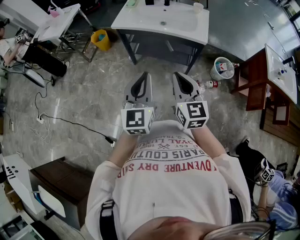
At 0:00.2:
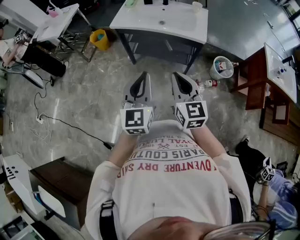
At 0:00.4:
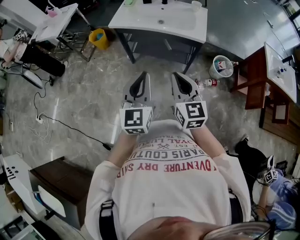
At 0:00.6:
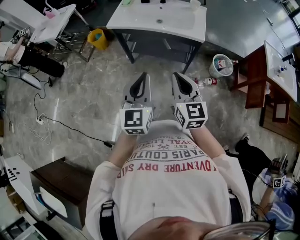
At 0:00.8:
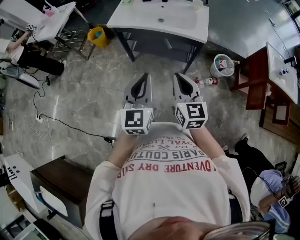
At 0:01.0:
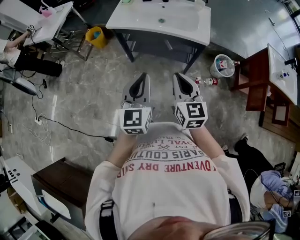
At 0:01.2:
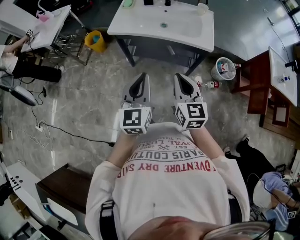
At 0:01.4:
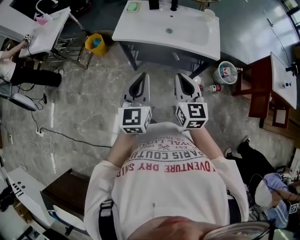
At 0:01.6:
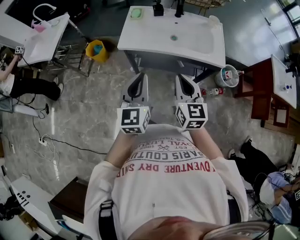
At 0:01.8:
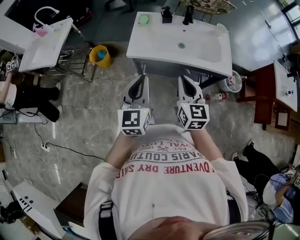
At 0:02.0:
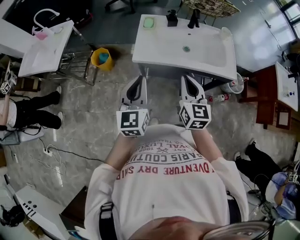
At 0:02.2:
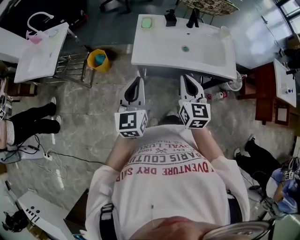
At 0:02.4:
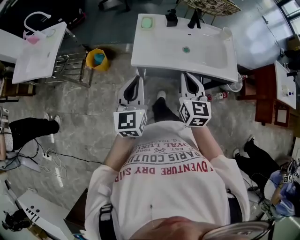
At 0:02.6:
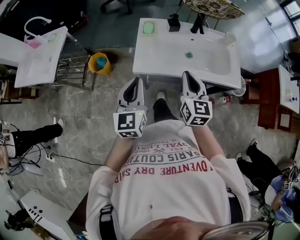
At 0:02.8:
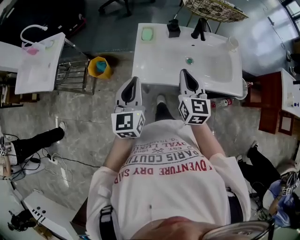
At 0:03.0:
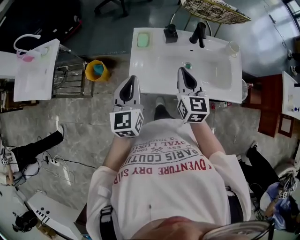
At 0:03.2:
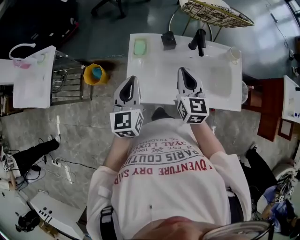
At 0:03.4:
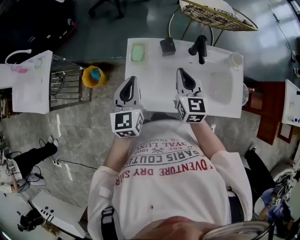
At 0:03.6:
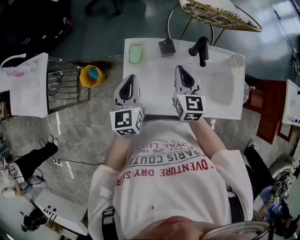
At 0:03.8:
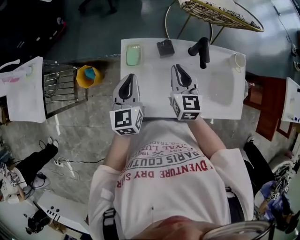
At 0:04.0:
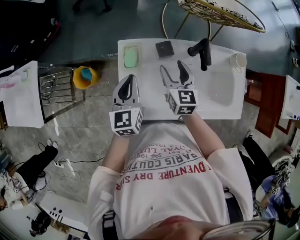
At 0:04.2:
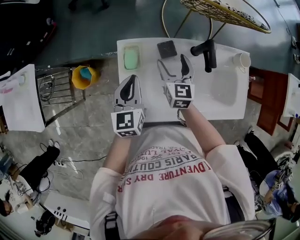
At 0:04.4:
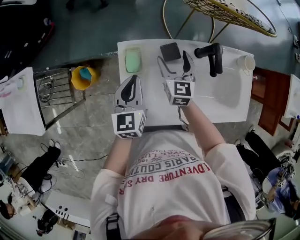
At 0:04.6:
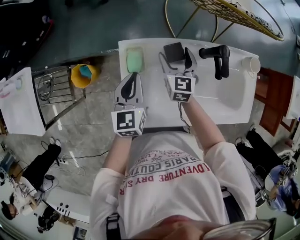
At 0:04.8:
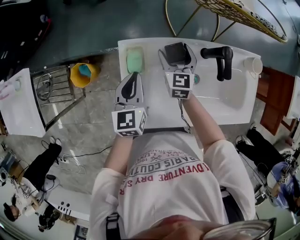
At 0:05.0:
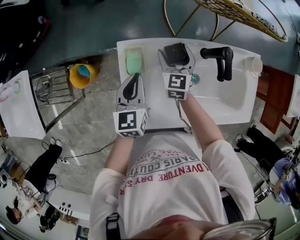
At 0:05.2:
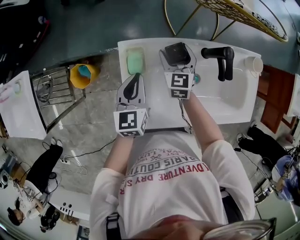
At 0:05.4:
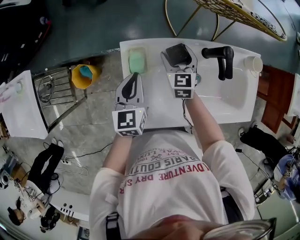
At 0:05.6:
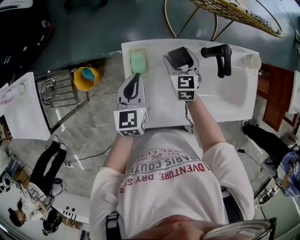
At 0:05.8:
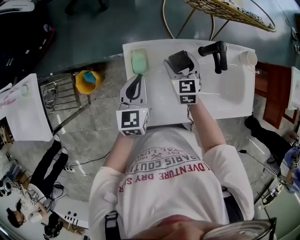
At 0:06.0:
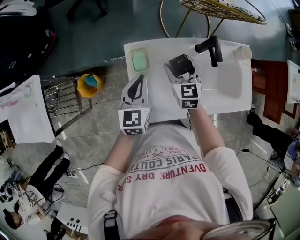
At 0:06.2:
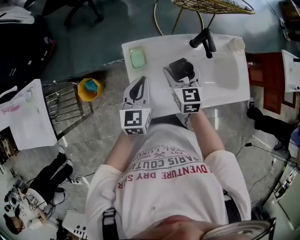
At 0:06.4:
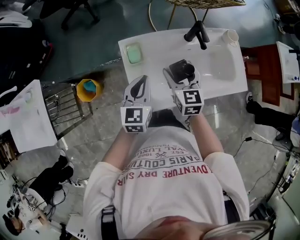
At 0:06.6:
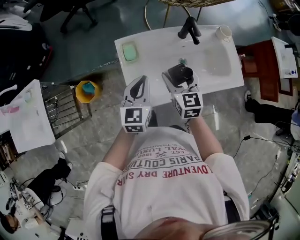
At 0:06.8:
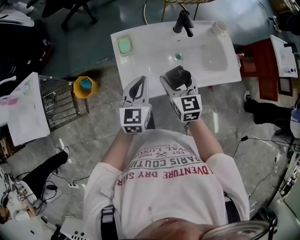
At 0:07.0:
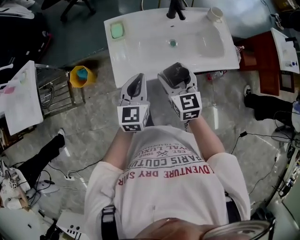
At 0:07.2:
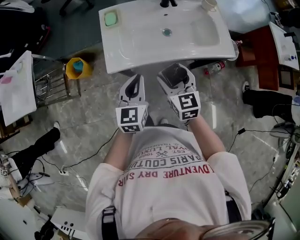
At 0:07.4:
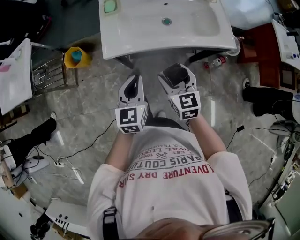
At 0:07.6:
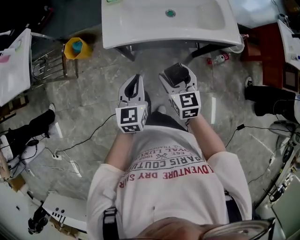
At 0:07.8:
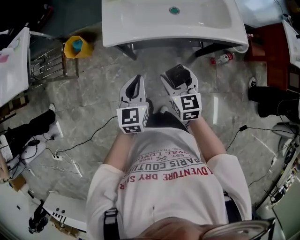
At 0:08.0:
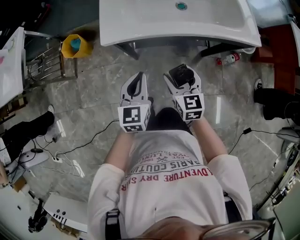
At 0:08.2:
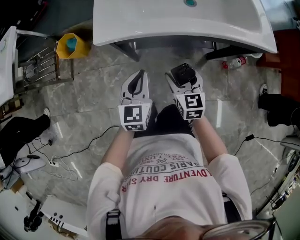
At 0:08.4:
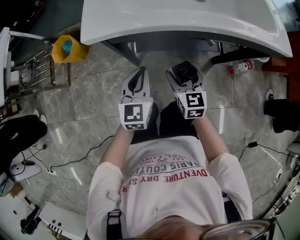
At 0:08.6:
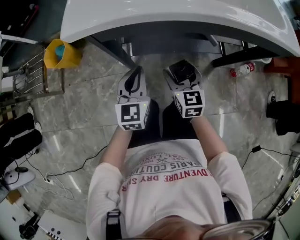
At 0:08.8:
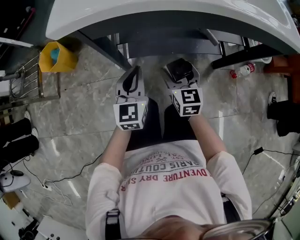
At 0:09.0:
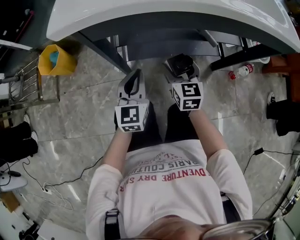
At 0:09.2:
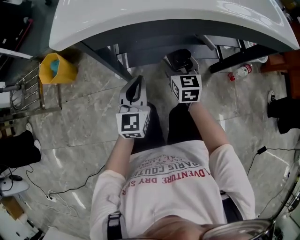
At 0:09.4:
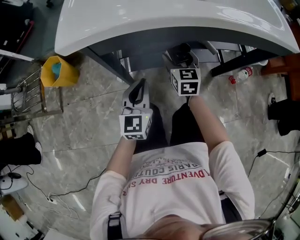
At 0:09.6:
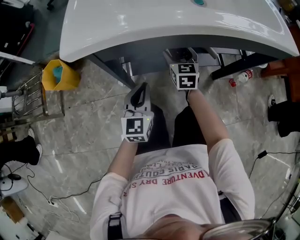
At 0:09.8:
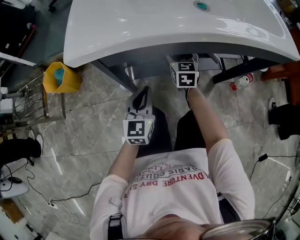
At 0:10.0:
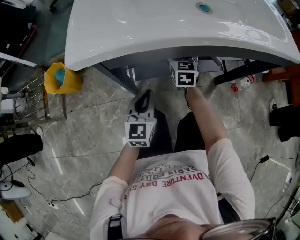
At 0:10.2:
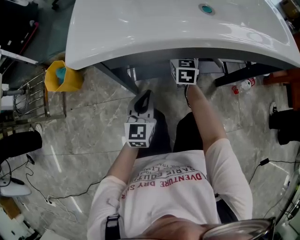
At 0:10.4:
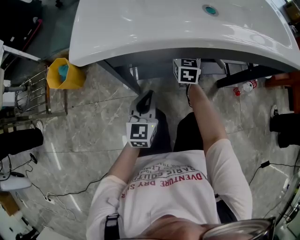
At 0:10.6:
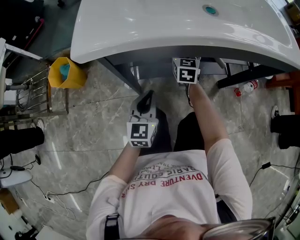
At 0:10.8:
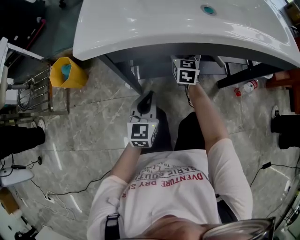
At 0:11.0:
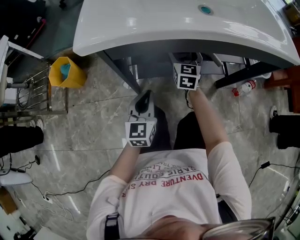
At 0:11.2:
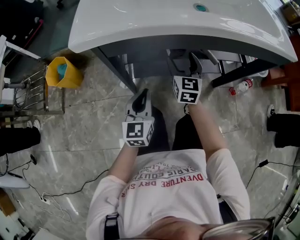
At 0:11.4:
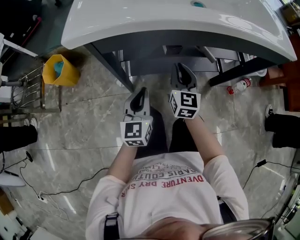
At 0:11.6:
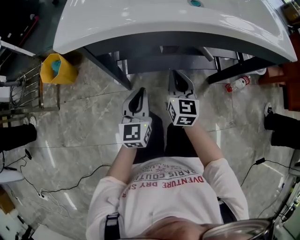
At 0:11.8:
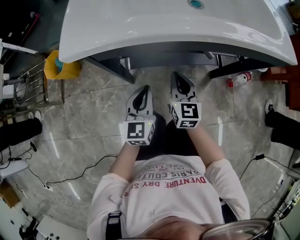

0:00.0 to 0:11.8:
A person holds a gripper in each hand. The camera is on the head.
0:00.0 to 0:01.4: The left gripper travels forward and to the left by roughly 20 cm. The right gripper shifts about 20 cm forward.
0:01.4 to 0:03.0: The left gripper is displaced forward and to the left by some 40 cm. Meanwhile the right gripper moves forward, roughly 40 cm.
0:03.0 to 0:04.4: The two grippers go roughly 25 cm forward and downward. The right gripper opens.
0:04.4 to 0:06.0: The right gripper ends up approximately 5 cm from where it was.
0:06.0 to 0:07.4: The two grippers go about 35 cm backward.
0:07.4 to 0:08.8: The grippers both shift downward by approximately 40 cm.
0:08.8 to 0:10.4: The right gripper moves forward, approximately 20 cm.
0:10.4 to 0:11.8: The left gripper goes about 5 cm upward, while the right gripper shifts approximately 20 cm backward, and closes.

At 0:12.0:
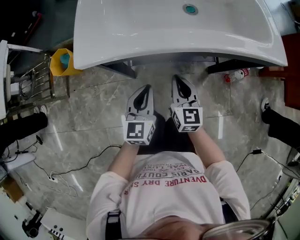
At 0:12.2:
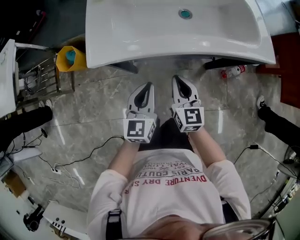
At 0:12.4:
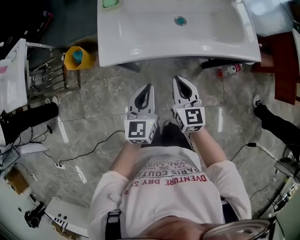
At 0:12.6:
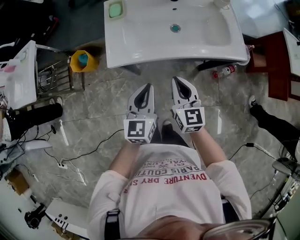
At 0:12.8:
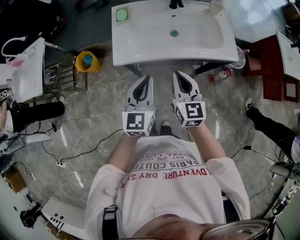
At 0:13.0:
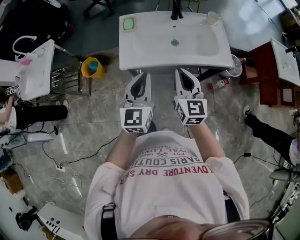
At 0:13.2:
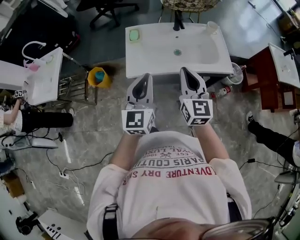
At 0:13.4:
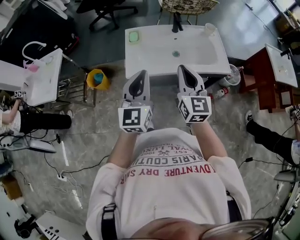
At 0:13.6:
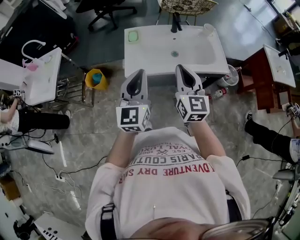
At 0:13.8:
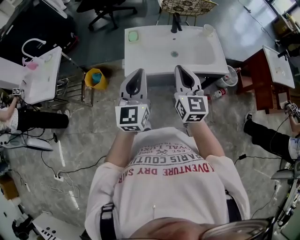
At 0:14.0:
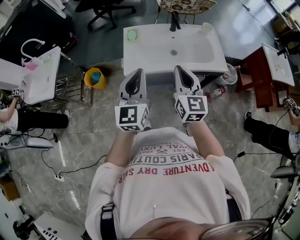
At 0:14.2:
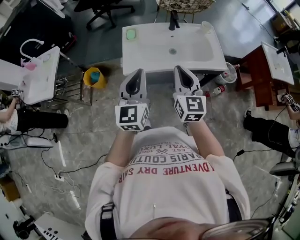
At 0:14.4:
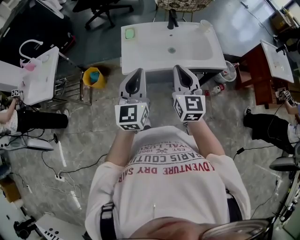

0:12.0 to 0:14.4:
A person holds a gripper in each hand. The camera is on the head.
0:12.0 to 0:13.2: Both grippers travel together upward, some 50 cm.
0:13.2 to 0:14.4: The grippers move only a little.

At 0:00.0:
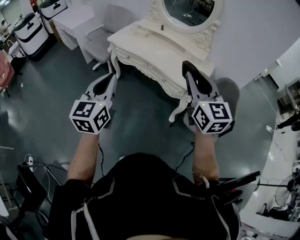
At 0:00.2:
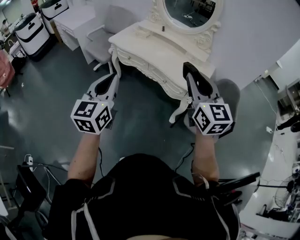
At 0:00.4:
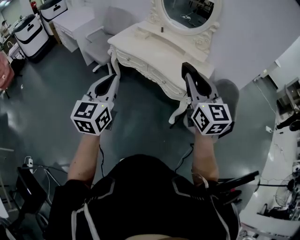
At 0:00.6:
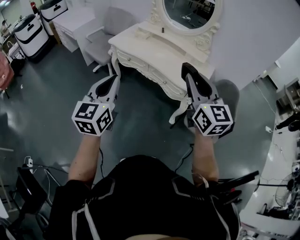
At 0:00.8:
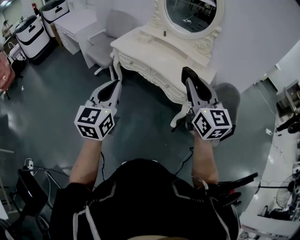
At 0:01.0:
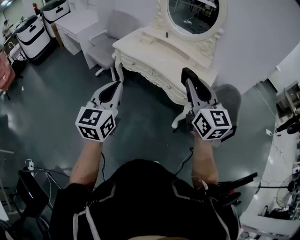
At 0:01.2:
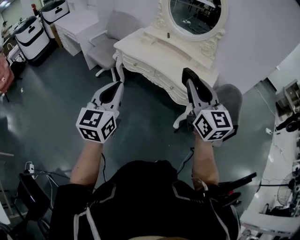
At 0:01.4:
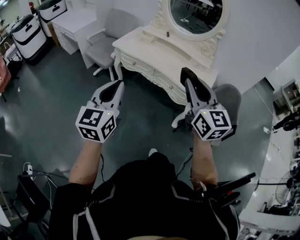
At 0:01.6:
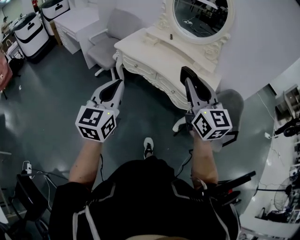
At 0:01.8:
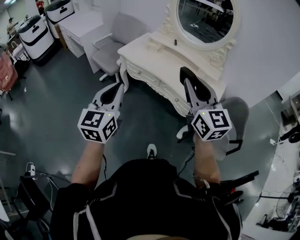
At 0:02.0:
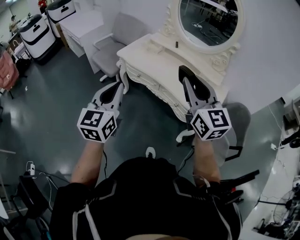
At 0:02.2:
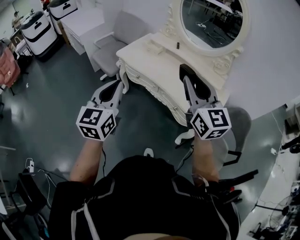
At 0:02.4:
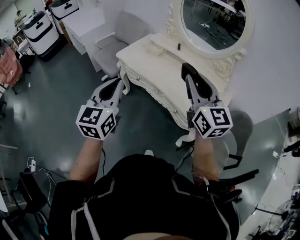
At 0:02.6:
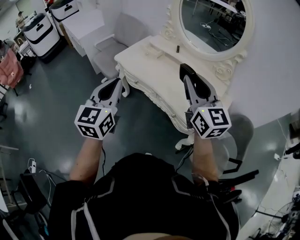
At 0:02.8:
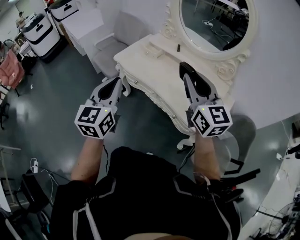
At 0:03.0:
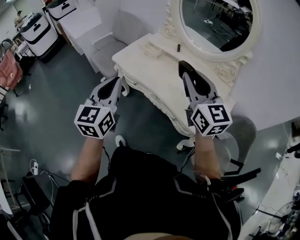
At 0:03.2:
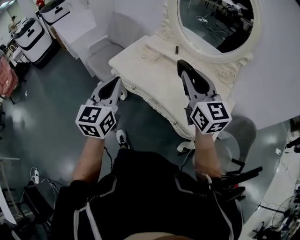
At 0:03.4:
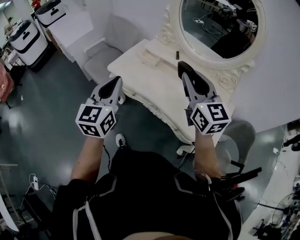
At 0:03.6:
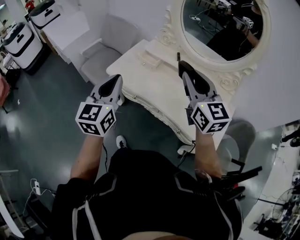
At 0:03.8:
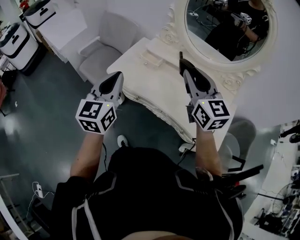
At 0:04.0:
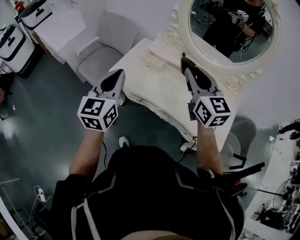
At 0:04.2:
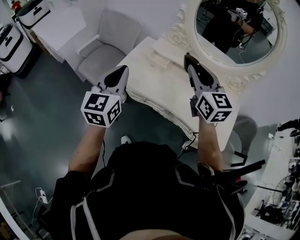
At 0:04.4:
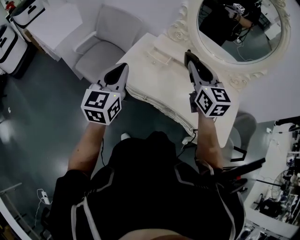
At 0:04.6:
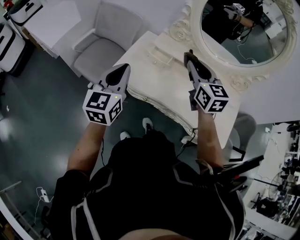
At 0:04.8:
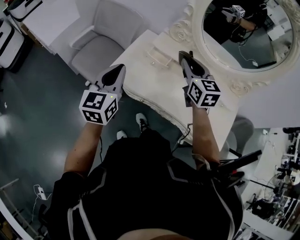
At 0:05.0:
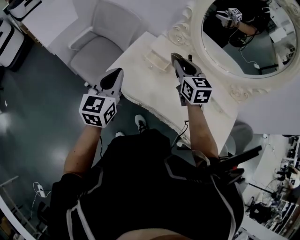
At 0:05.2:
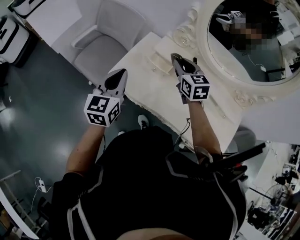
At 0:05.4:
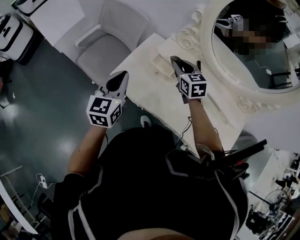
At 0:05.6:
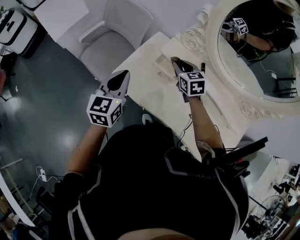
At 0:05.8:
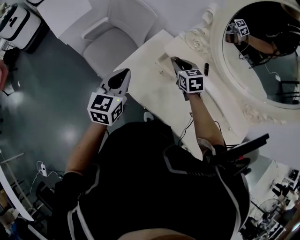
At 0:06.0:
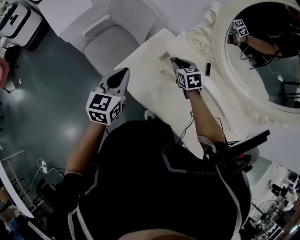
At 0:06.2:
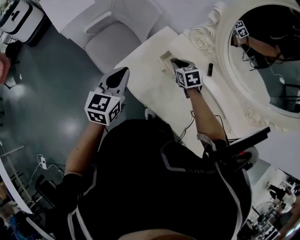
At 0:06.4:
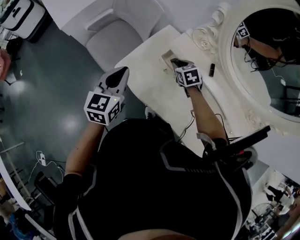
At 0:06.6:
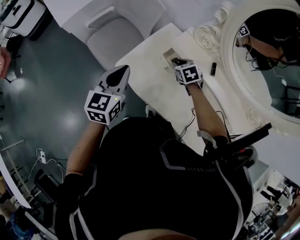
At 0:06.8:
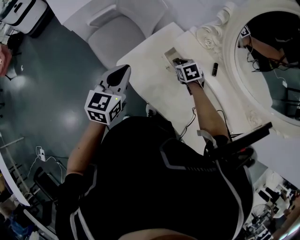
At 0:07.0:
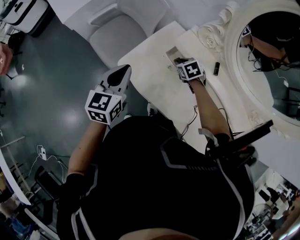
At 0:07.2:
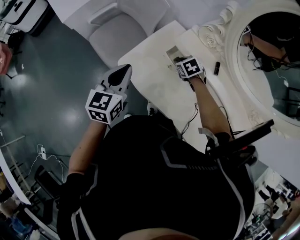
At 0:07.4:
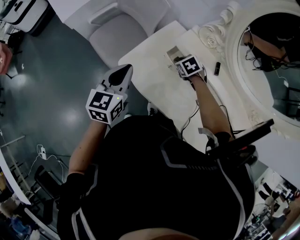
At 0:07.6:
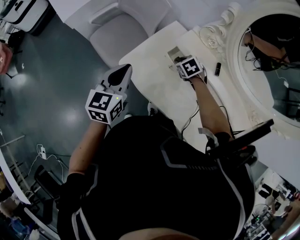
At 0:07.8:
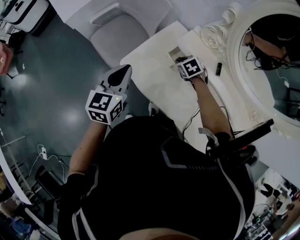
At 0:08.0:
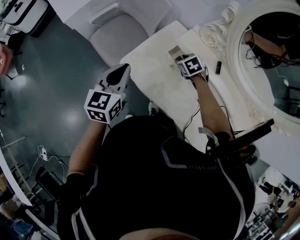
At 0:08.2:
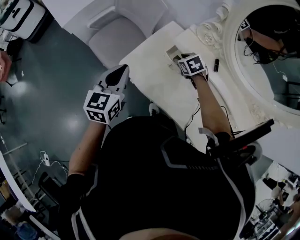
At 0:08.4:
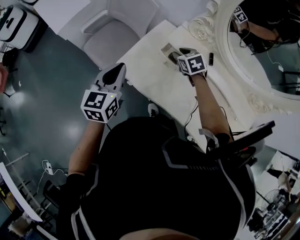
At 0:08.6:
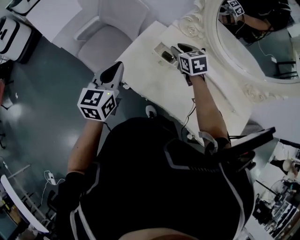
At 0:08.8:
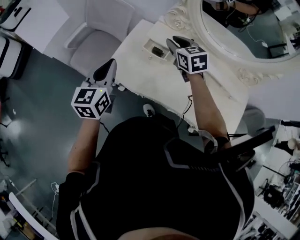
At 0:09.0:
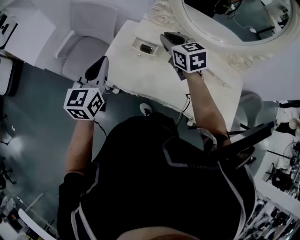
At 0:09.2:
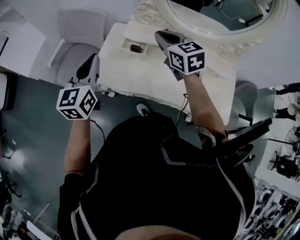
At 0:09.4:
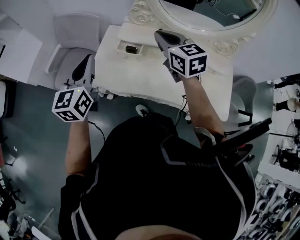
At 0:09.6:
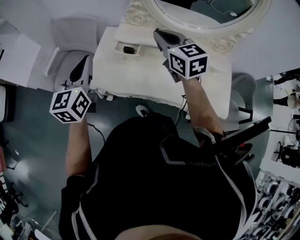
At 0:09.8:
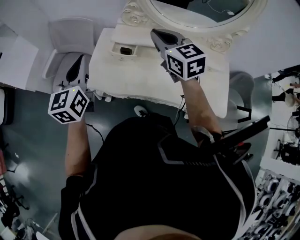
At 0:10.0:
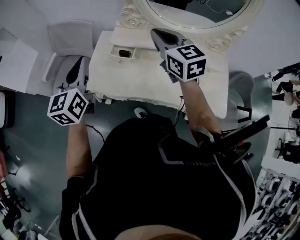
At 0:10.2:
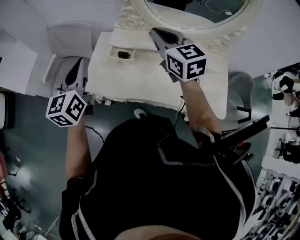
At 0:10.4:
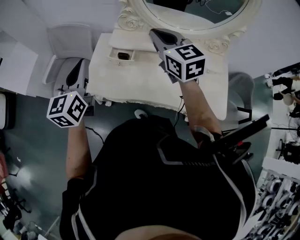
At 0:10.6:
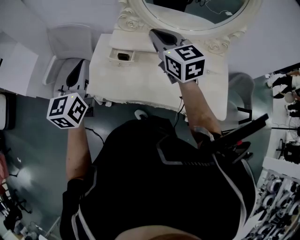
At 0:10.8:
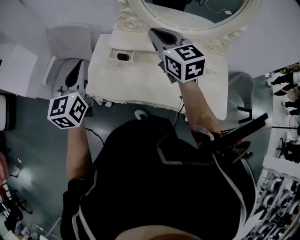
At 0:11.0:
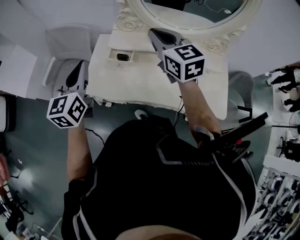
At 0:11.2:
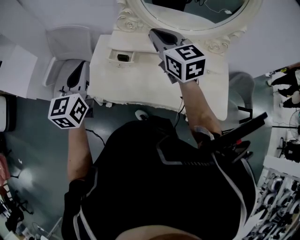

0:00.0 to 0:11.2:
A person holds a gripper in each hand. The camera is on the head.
0:00.0 to 0:01.6: Both grippers travel together to the left, roughly 10 cm.
0:01.6 to 0:03.2: Both grippers move forward, some 30 cm.
0:03.2 to 0:04.8: Both grippers move forward and to the left, about 30 cm. The right gripper rotates about 20 degrees.
0:04.8 to 0:06.4: The left gripper is displaced forward and downward by roughly 10 cm. Meanwhile the right gripper heads downward and forward, covering some 30 cm, and tilts its fingers roughly 30 degrees downward.
0:06.4 to 0:08.0: The grippers move only a little.
0:08.0 to 0:09.6: The left gripper is displaced upward by some 10 cm, and changes its angle by about 20 degrees, while the right gripper moves upward and backward, about 35 cm, tips its fingers upward by some 50 degrees, and closes up.
0:09.6 to 0:11.2: The grippers make only small movements.
